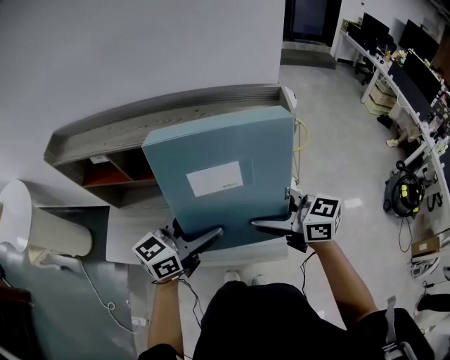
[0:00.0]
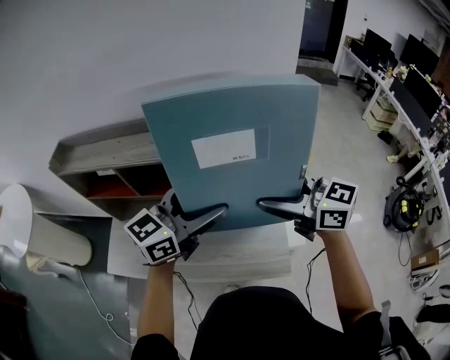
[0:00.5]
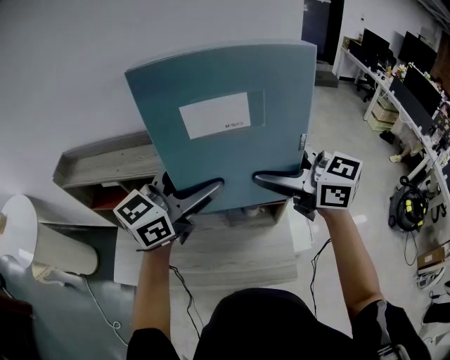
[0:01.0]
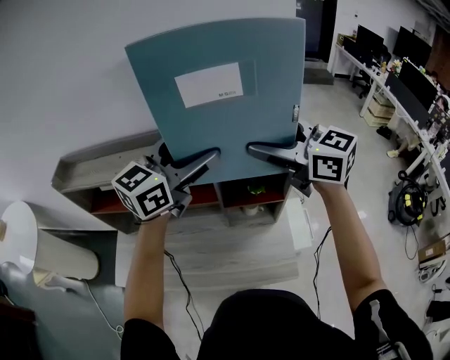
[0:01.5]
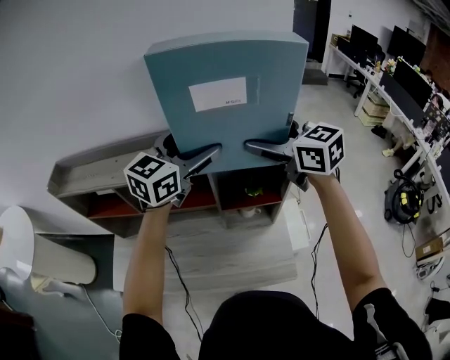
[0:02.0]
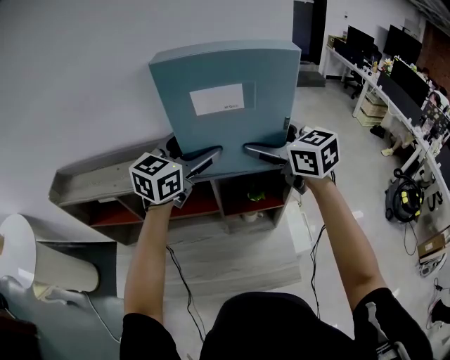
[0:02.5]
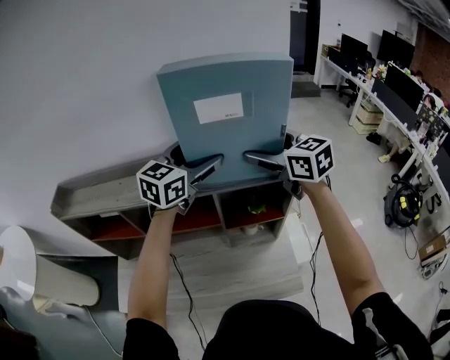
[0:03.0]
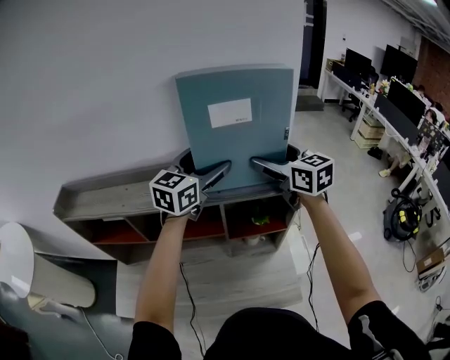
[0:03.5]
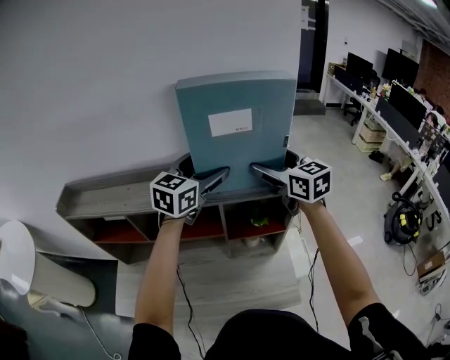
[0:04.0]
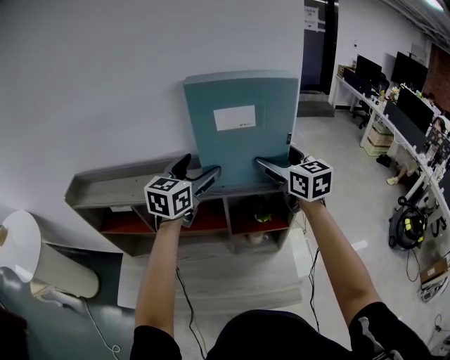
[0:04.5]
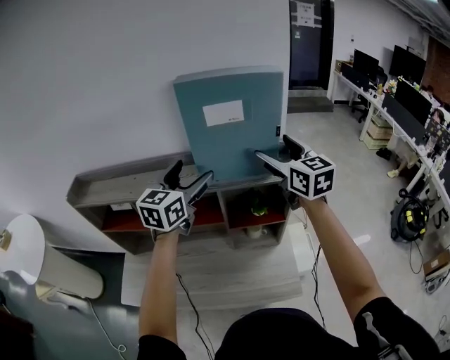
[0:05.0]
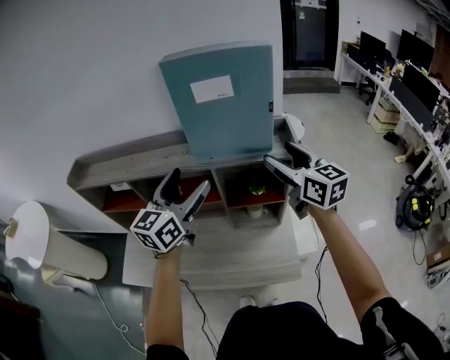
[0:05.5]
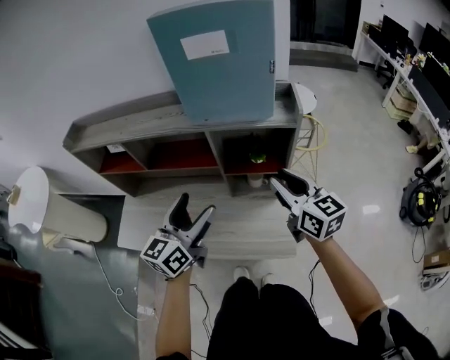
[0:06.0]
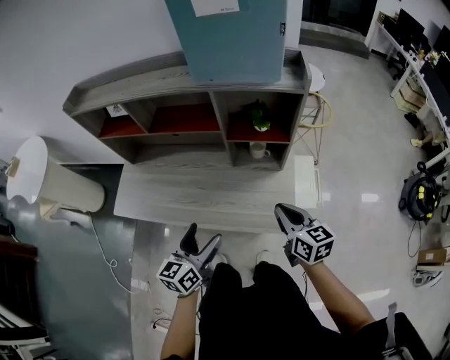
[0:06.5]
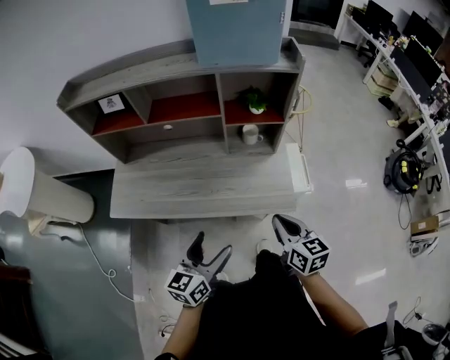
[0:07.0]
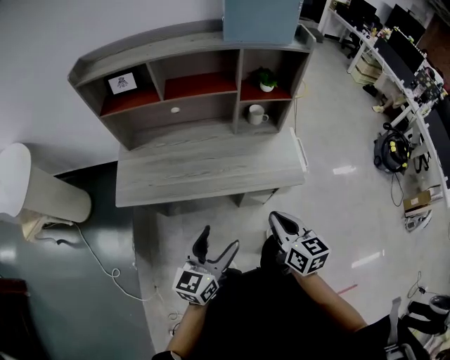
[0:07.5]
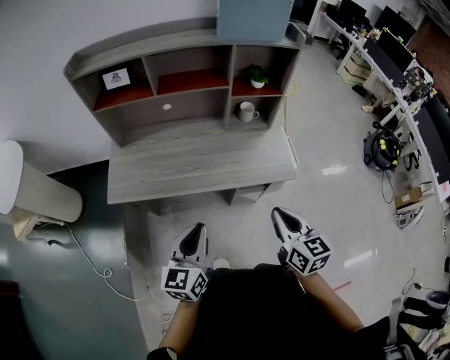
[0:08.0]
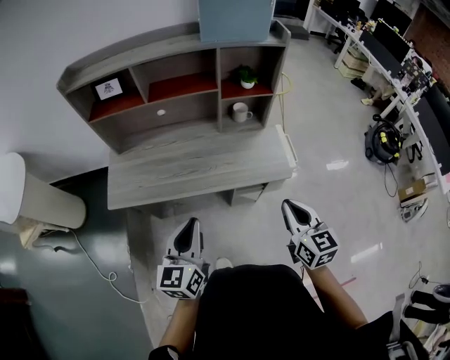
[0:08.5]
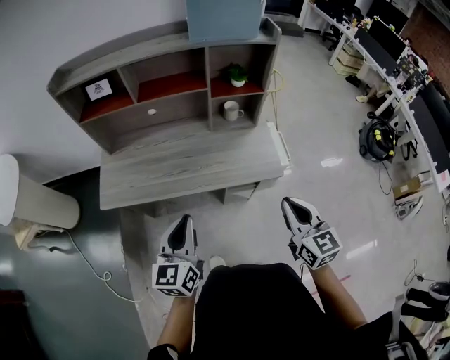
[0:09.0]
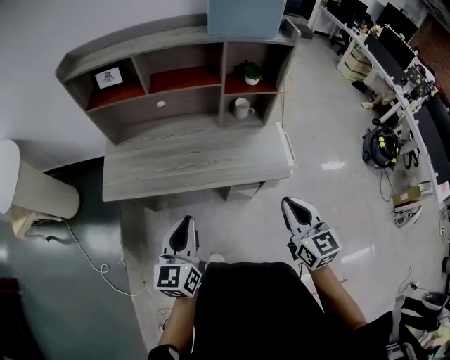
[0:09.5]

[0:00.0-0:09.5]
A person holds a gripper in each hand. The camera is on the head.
0:00.0 to 0:02.0: Both grippers travel together forward and upward, approximately 25 cm. The right gripper rotates some 30 degrees, while the left gripper changes its angle by approximately 20 degrees.
0:02.0 to 0:04.0: The left gripper ends up about 5 cm from where it was.
0:04.0 to 0:05.5: The grippers both shift backward by roughly 15 cm.
0:05.5 to 0:07.5: Both grippers are carried backward, roughly 50 cm. Both grippers travel together downward, roughly 25 cm. The right gripper turns by approximately 30 degrees, and closes up.
0:07.5 to 0:09.5: The right gripper travels to the right and upward by some 10 cm. The left gripper moves some 5 cm, and closes.

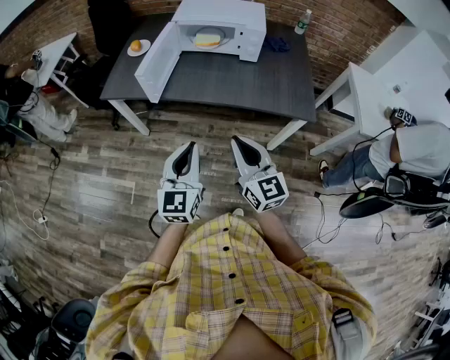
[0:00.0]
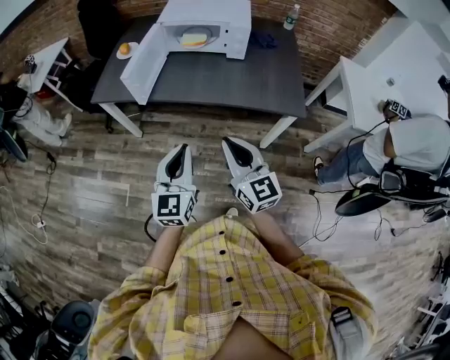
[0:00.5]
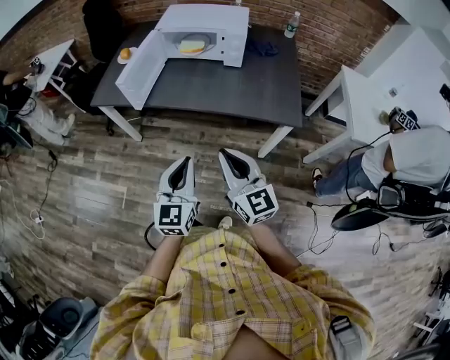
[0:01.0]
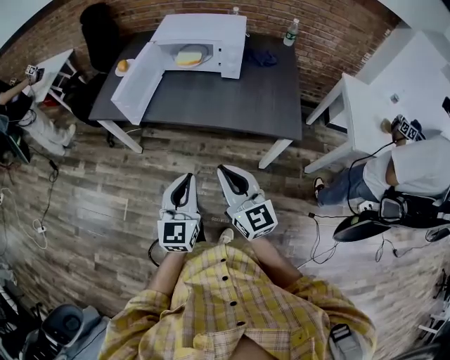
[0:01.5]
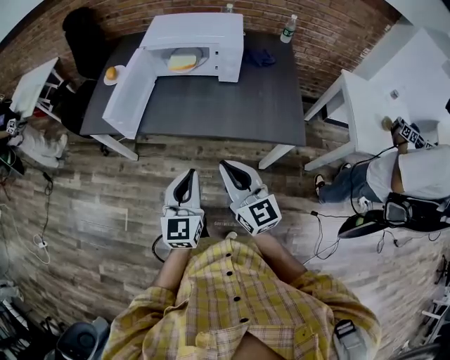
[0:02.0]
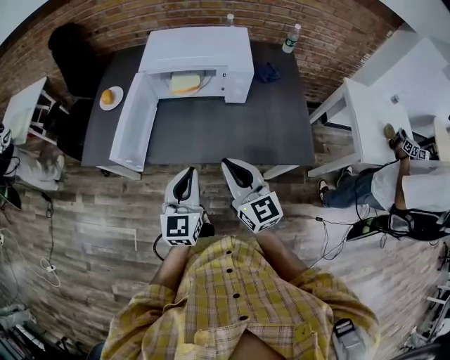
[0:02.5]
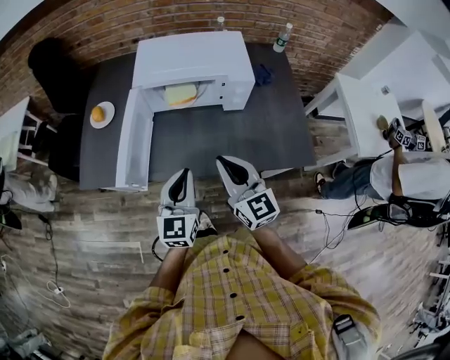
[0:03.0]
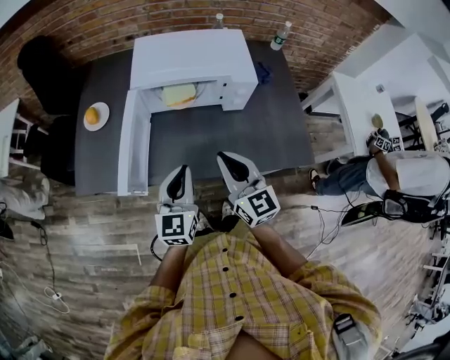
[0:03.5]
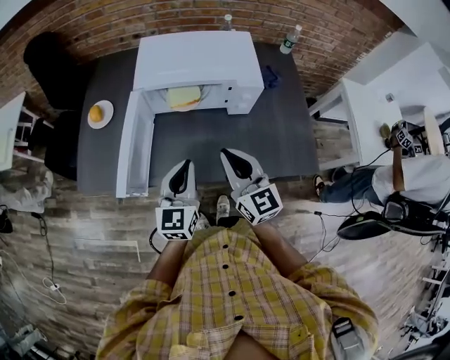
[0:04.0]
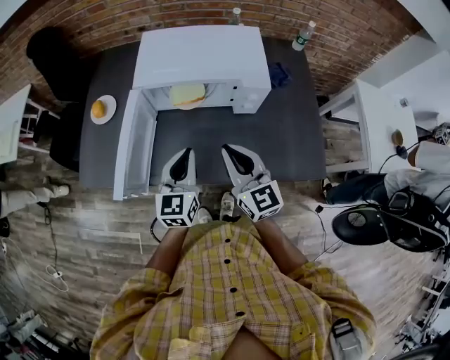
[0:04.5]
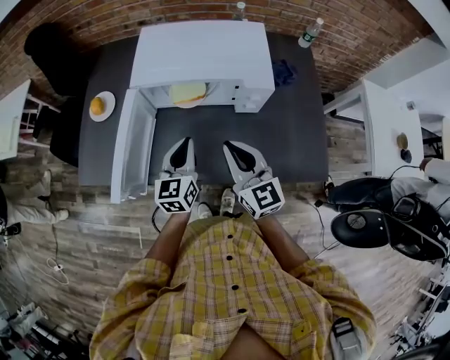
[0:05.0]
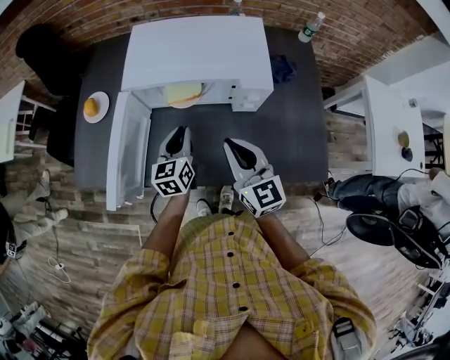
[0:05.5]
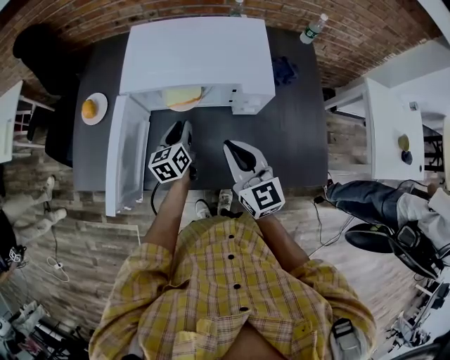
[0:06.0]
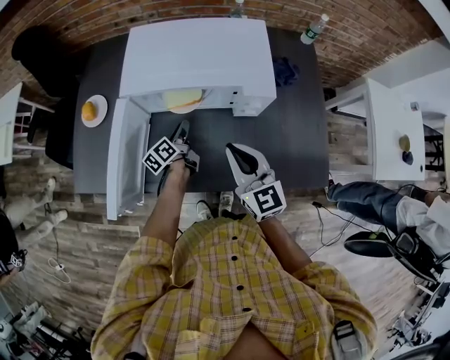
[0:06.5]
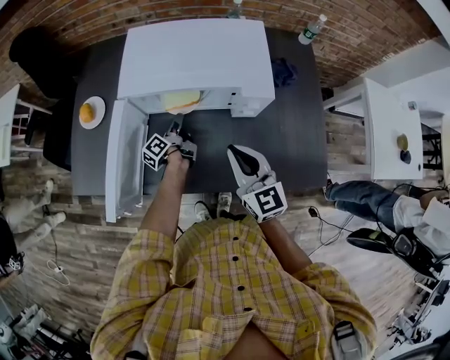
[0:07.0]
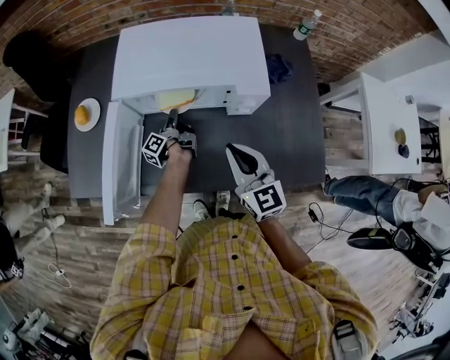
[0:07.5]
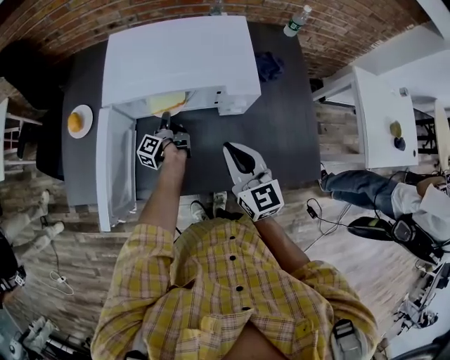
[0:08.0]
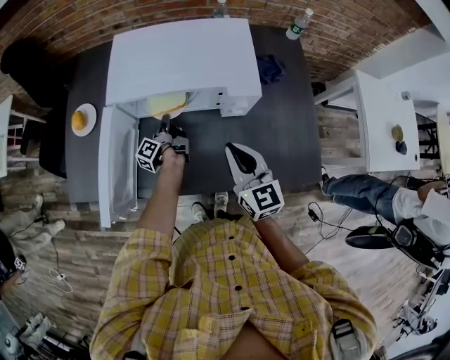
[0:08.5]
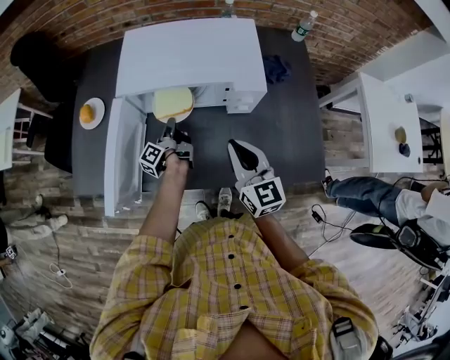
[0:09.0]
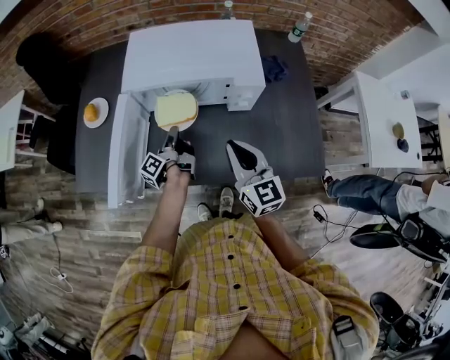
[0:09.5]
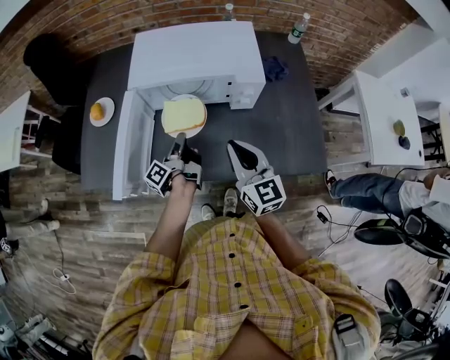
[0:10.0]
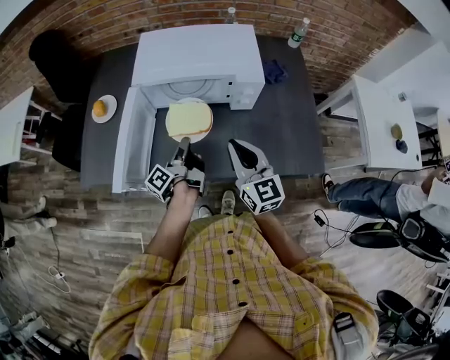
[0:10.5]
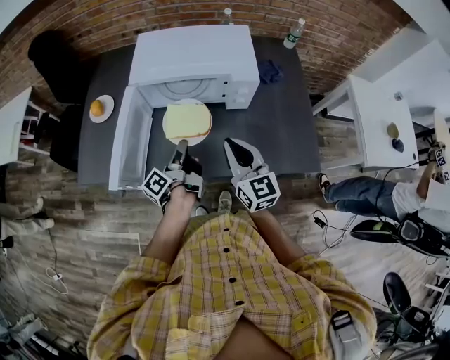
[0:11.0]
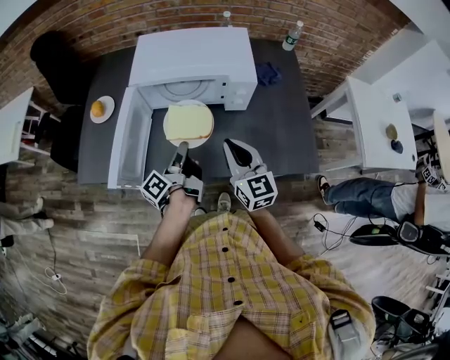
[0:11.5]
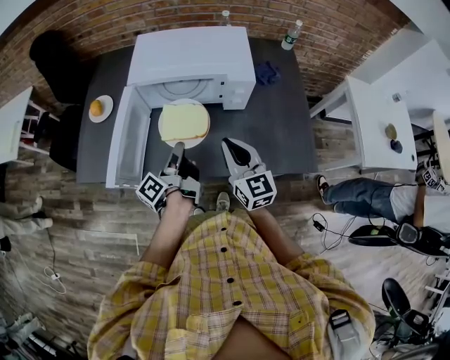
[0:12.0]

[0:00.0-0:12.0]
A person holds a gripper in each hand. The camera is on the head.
0:00.0 to 0:02.0: The right gripper is displaced forward and to the right by some 10 cm; the left gripper moves to the right and forward, about 15 cm.
0:02.0 to 0:04.0: The two grippers go some 30 cm forward.
0:04.0 to 0:06.0: The right gripper is displaced forward and downward by roughly 10 cm, while the left gripper goes approximately 25 cm forward and downward, changes its angle by about 30 degrees, and opens up.
0:06.0 to 0:08.0: The left gripper is displaced downward and forward by about 10 cm, and twists approximately 60 degrees counterclockwise, seen from behind.
0:08.0 to 0:10.0: The right gripper heads backward, covering some 5 cm, while the left gripper heads backward and upward, covering approximately 20 cm.
0:10.0 to 0:12.0: The left gripper shifts approximately 10 cm upward and backward.

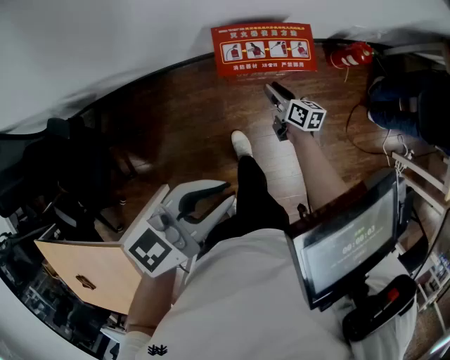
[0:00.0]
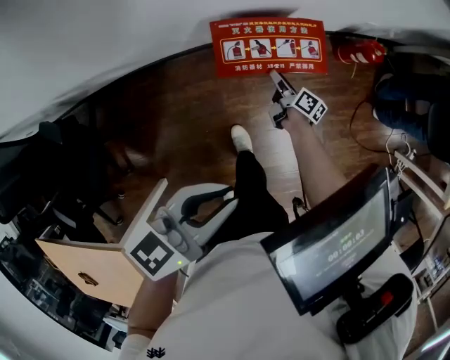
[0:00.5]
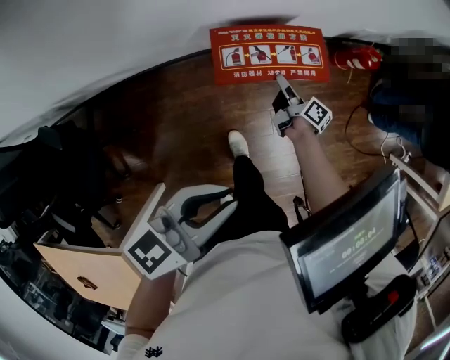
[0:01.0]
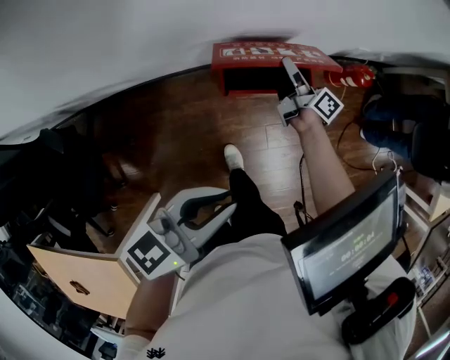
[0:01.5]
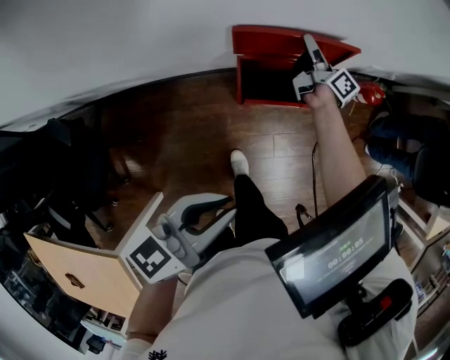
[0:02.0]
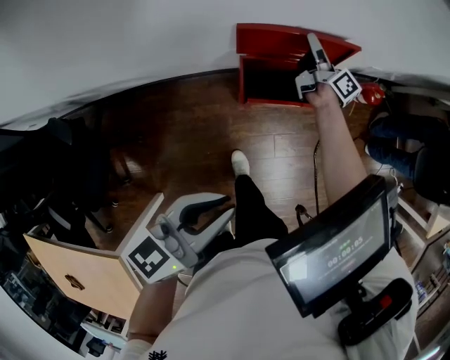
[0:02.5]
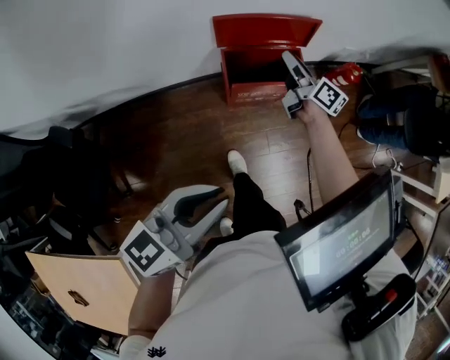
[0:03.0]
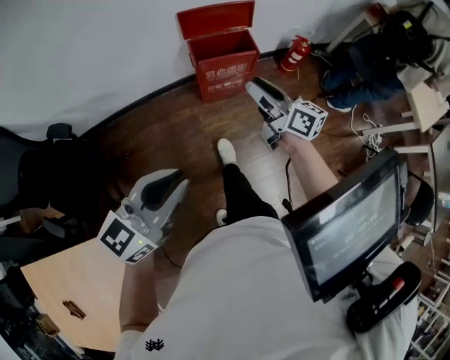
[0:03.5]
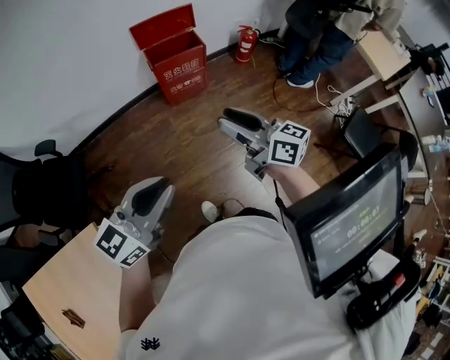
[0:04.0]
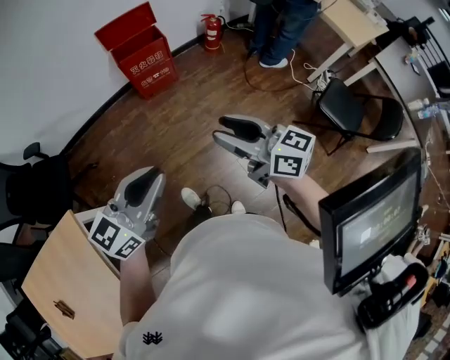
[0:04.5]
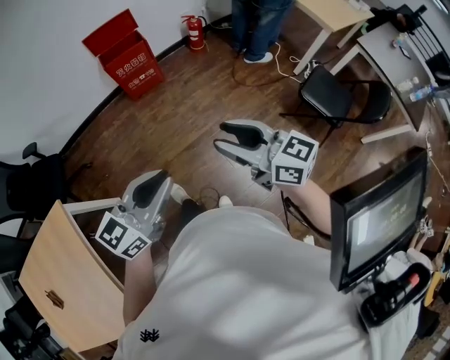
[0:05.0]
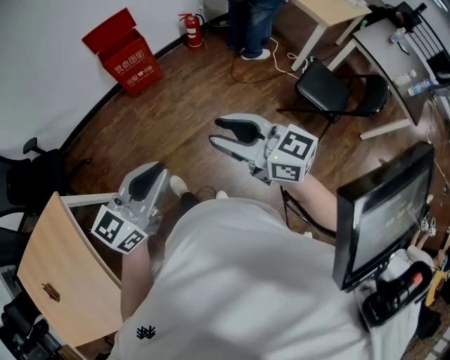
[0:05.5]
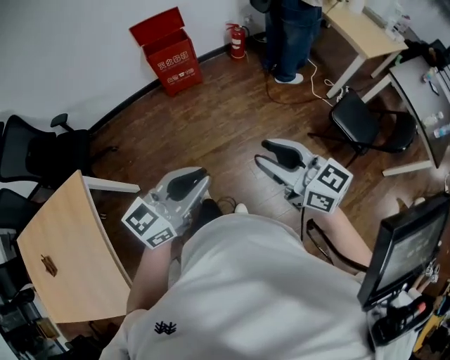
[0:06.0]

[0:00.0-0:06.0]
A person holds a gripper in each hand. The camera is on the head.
0:00.0 to 0:02.0: The left gripper shifts roughly 5 cm forward, while the right gripper travels forward and upward by approximately 30 cm, and changes its angle by about 40 degrees.
0:02.0 to 0:04.0: The right gripper is displaced backward by some 60 cm, and swivels approximately 40 degrees, while the left gripper goes roughly 35 cm backward, and changes its angle by about 30 degrees.
0:04.0 to 0:06.0: The left gripper moves to the right and backward, some 30 cm; the right gripper is displaced backward and to the right by some 35 cm.
